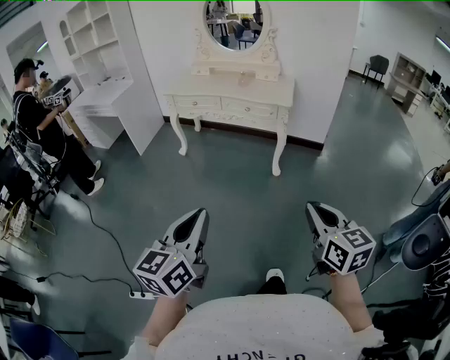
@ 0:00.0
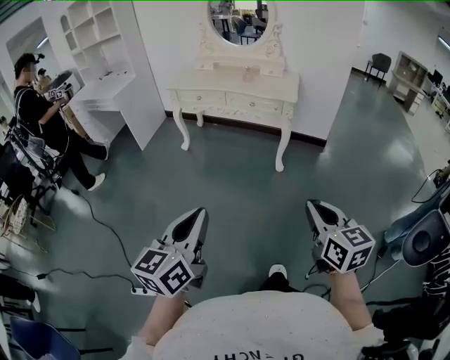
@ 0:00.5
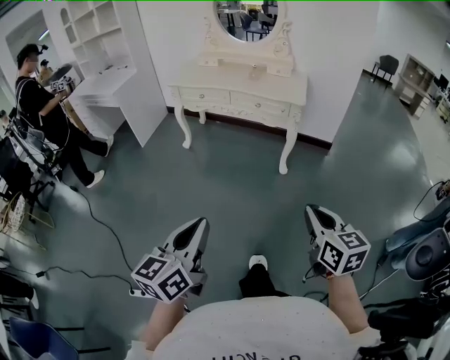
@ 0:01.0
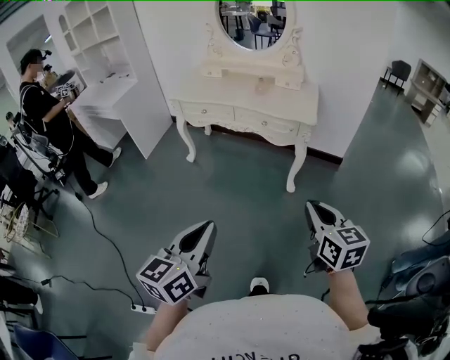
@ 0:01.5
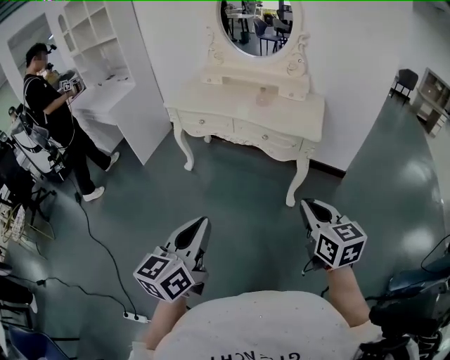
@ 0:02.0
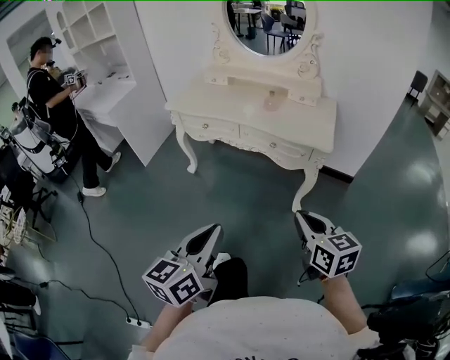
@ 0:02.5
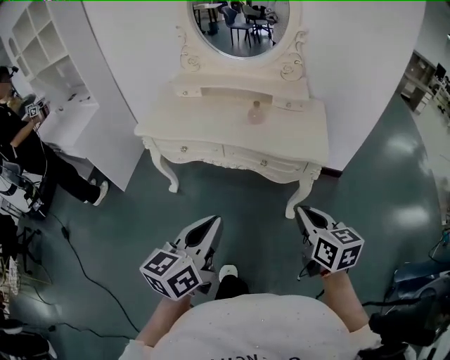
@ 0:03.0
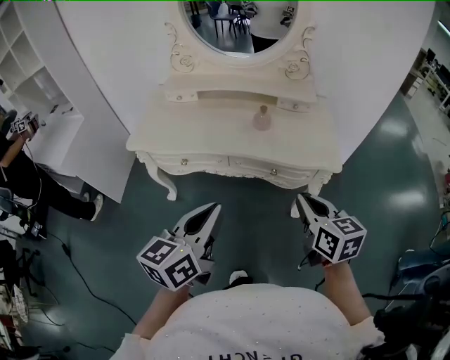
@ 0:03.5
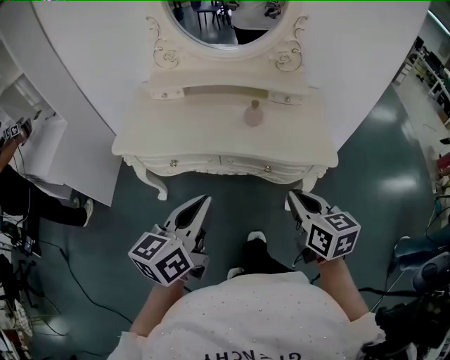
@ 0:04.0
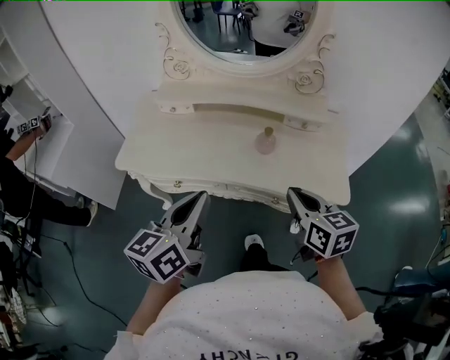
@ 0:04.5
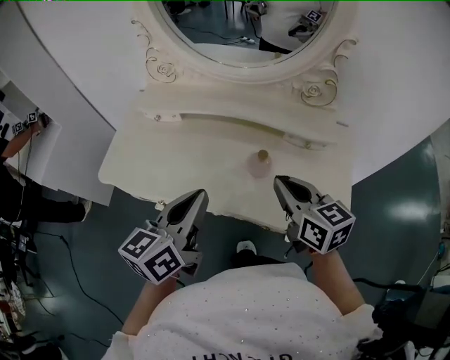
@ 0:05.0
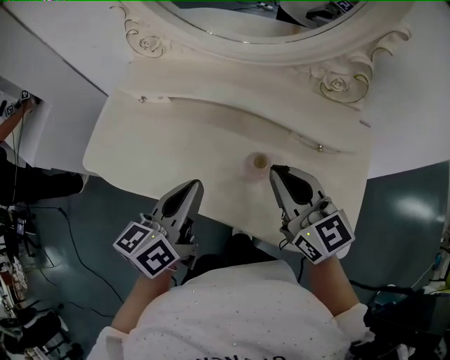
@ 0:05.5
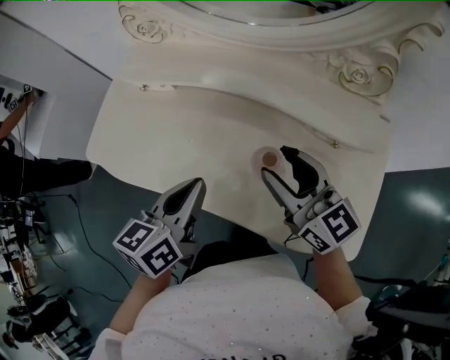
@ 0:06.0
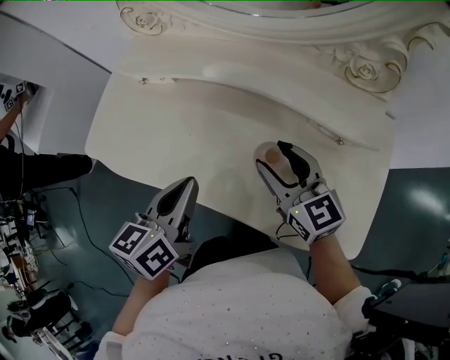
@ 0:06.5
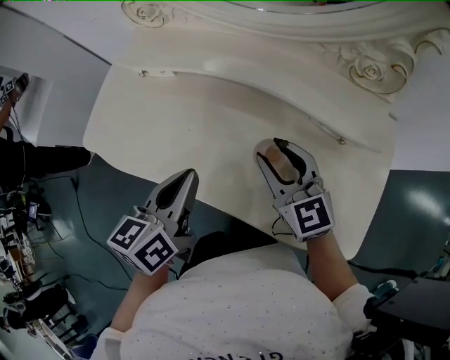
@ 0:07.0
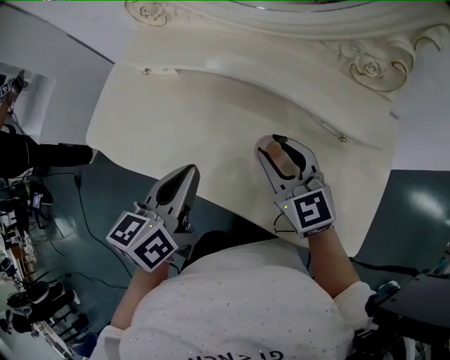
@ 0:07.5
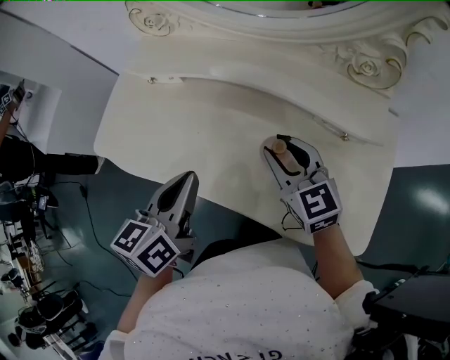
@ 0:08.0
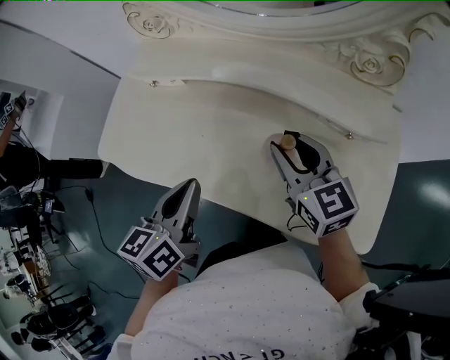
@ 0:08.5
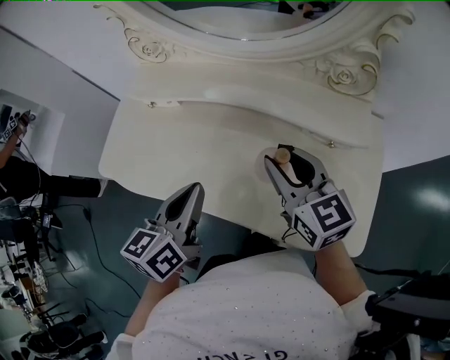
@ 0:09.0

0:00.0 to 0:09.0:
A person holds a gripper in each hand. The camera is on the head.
0:00.0 to 0:02.0: Both grippers move forward, roughly 35 cm.
0:02.0 to 0:04.5: Both grippers are carried forward, some 50 cm.
0:04.5 to 0:07.0: The left gripper heads forward and downward, covering some 25 cm, and turns by roughly 20 degrees. The right gripper shifts some 25 cm forward, turns by approximately 30 degrees, and opens up.
0:07.0 to 0:09.0: The right gripper shifts some 5 cm upward.

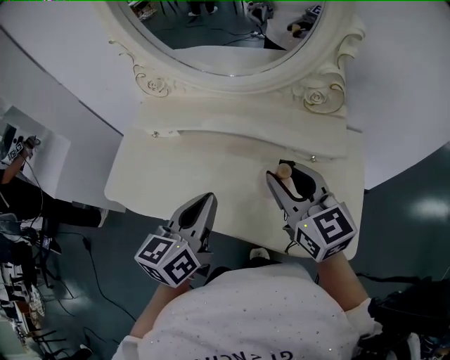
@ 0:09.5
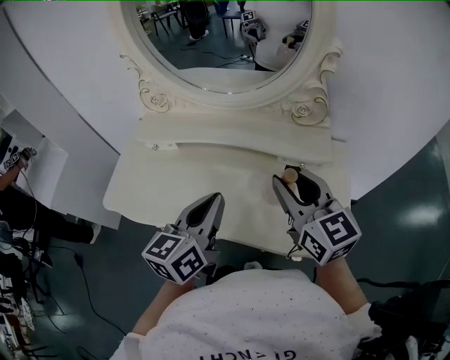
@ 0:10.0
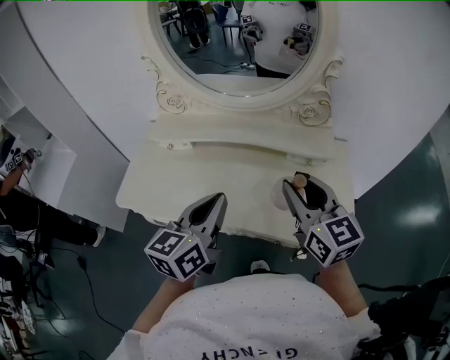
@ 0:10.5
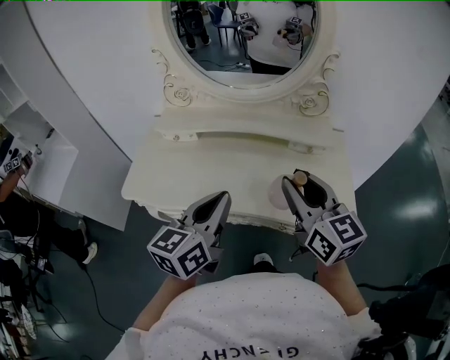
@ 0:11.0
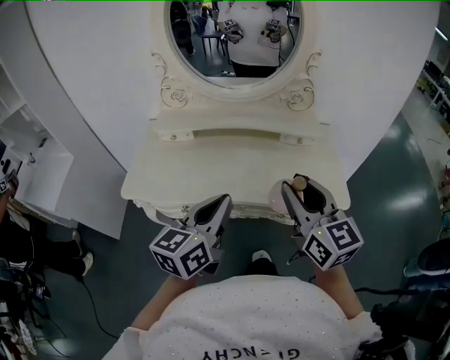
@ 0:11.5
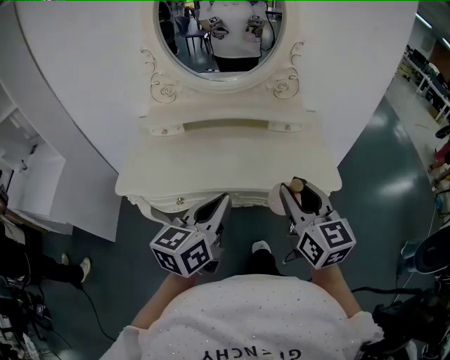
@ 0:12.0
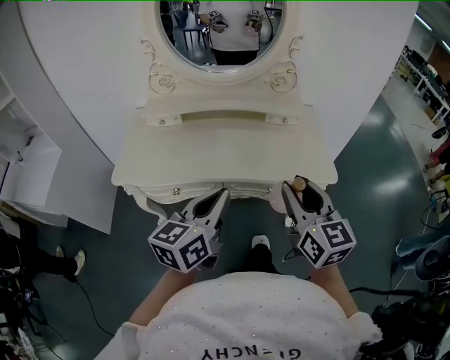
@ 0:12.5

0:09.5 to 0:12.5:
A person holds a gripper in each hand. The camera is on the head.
0:09.5 to 0:11.0: The left gripper is displaced backward, upward and to the left by roughly 15 cm; the right gripper goes approximately 15 cm backward and upward.
0:11.0 to 0:12.5: The two grippers go some 15 cm backward.

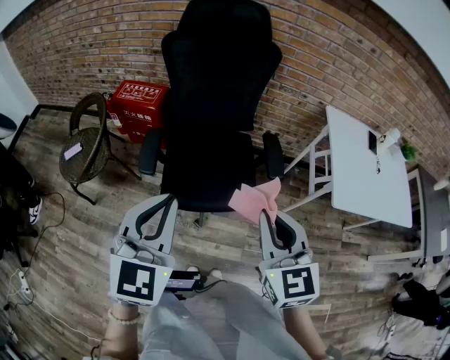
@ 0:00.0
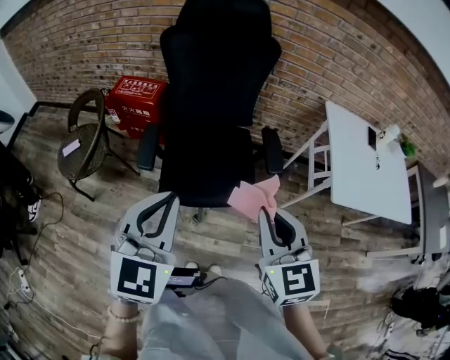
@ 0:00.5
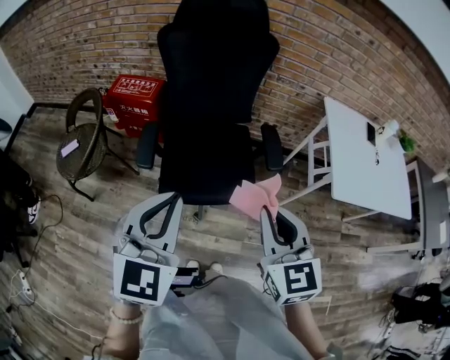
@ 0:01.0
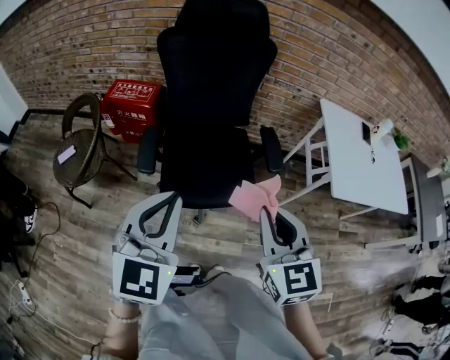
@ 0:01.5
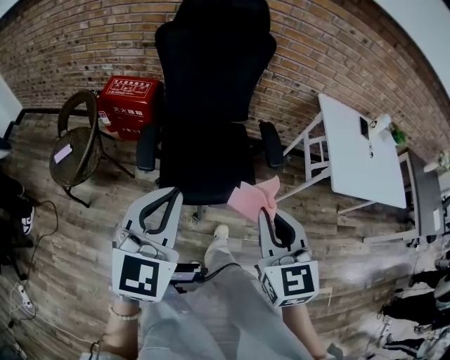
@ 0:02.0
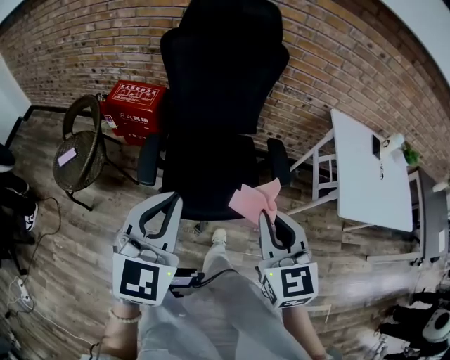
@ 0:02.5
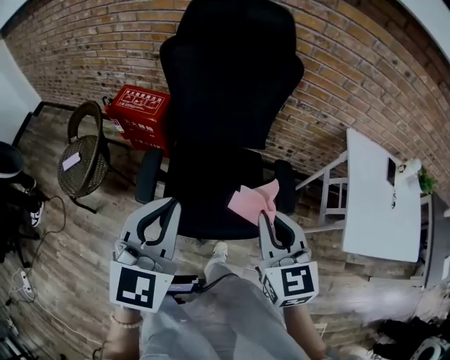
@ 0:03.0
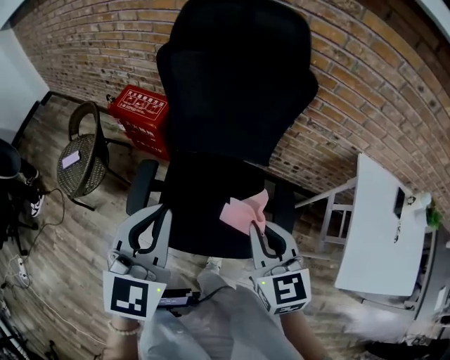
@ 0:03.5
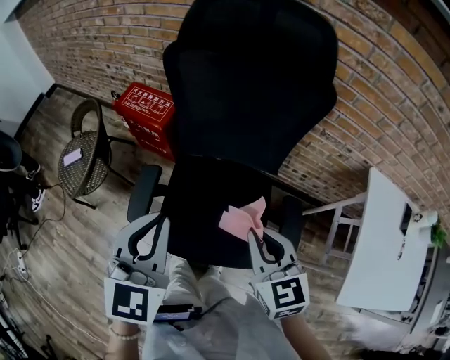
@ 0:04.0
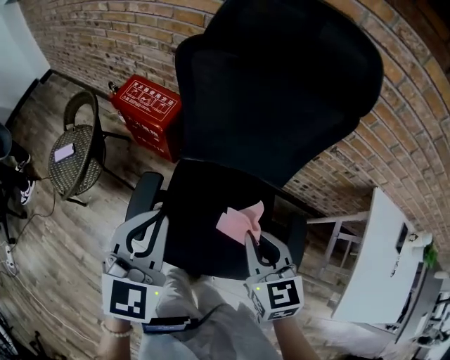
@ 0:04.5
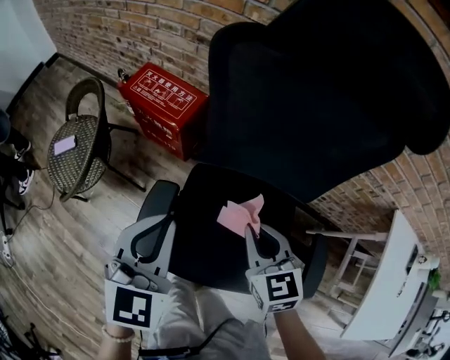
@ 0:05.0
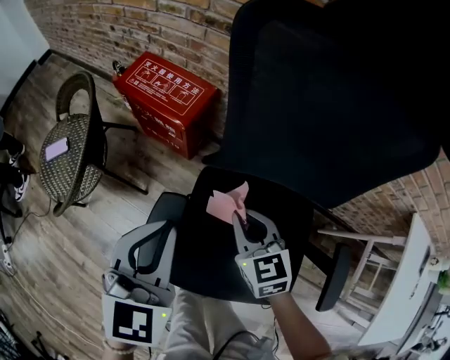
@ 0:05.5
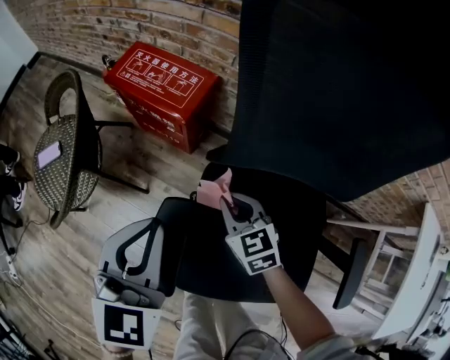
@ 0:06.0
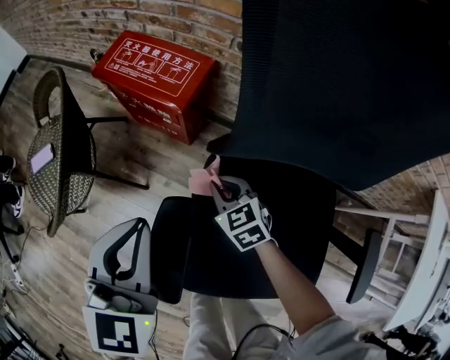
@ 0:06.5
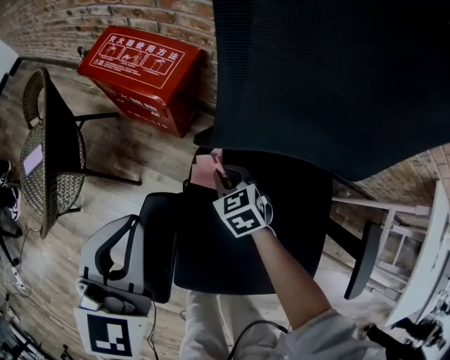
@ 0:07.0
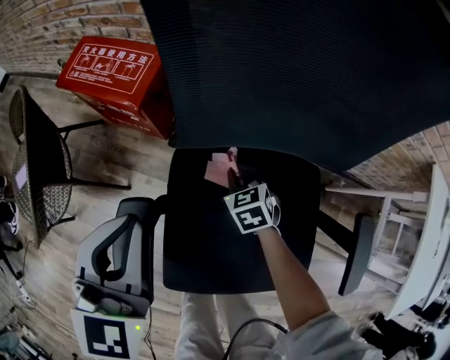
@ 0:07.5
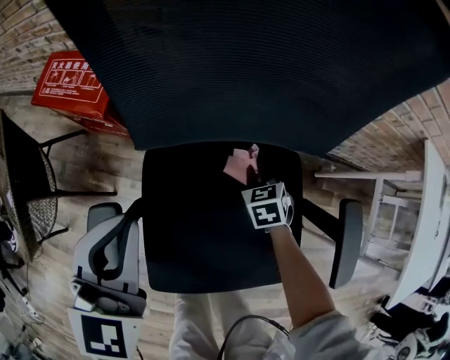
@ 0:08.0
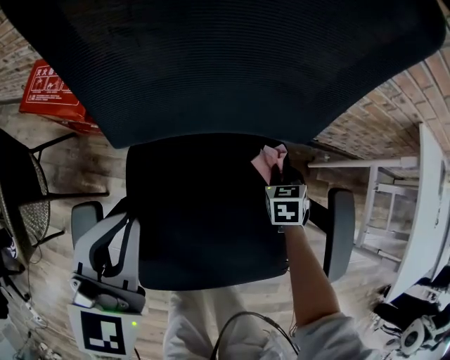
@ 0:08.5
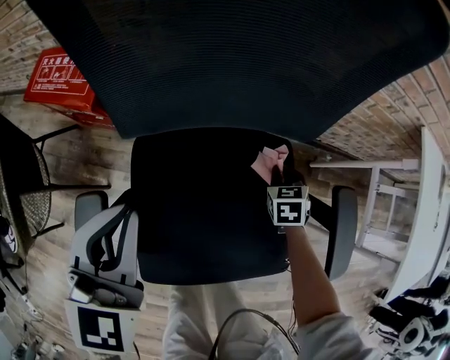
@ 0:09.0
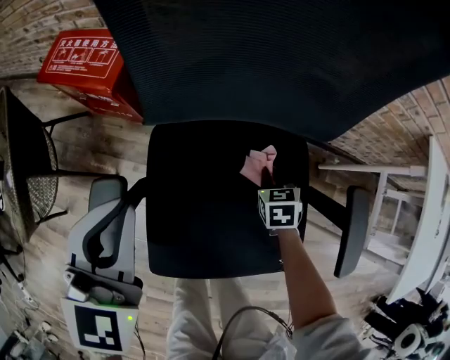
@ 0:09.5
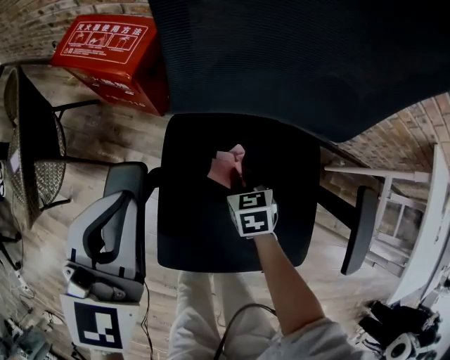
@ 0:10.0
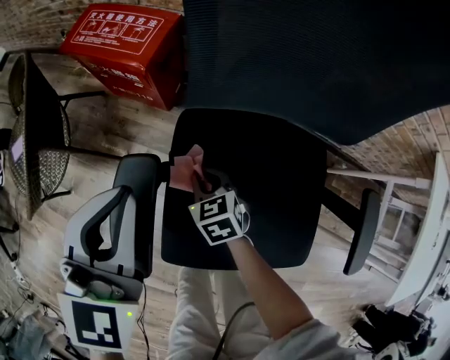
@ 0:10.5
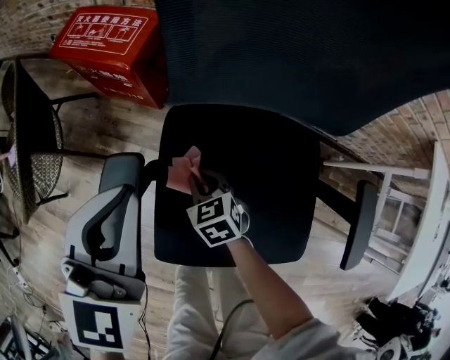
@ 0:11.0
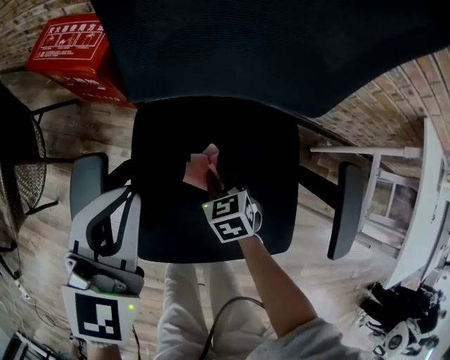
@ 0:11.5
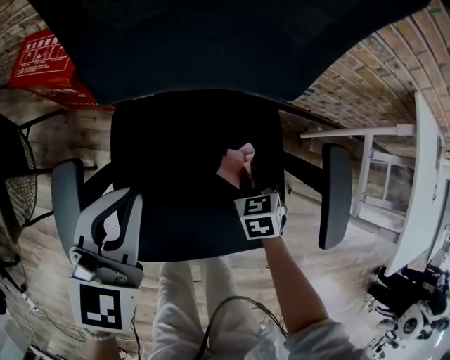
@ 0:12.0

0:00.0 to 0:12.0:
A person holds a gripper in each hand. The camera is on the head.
0:00.0 to 0:02.0: The right gripper heads to the left, covering about 5 cm.
0:02.0 to 0:04.0: Both grippers travel together forward, approximately 35 cm. The right gripper rotates some 20 degrees. The left gripper turns by roughly 30 degrees.
0:04.0 to 0:06.0: Both grippers move downward, forward and to the left, roughly 50 cm.
0:06.0 to 0:08.0: The left gripper moves approximately 15 cm; the right gripper changes place by some 30 cm, and turns by roughly 30 degrees.
0:08.0 to 0:10.0: The left gripper heads to the left, covering some 5 cm. The right gripper moves to the left and backward, approximately 15 cm.
0:10.0 to 0:12.0: The right gripper changes place by approximately 20 cm; the left gripper shifts by roughly 15 cm.

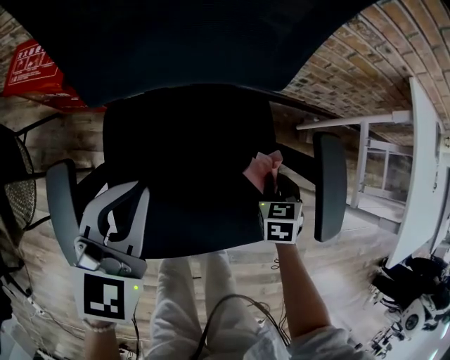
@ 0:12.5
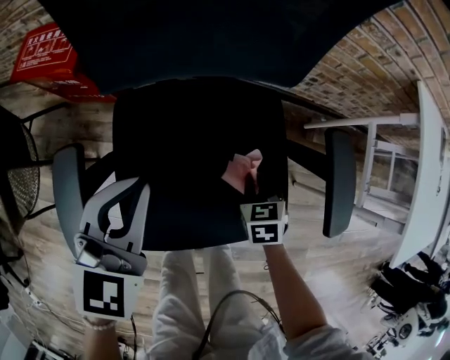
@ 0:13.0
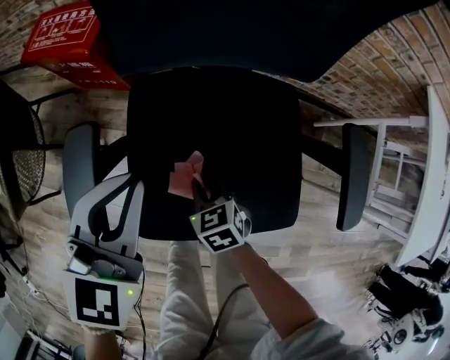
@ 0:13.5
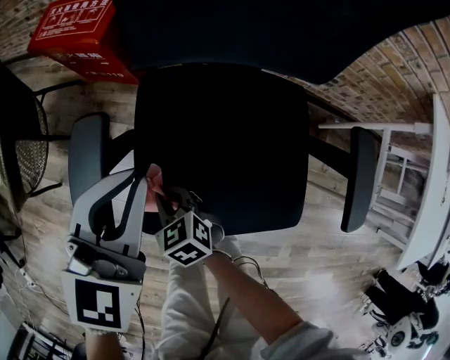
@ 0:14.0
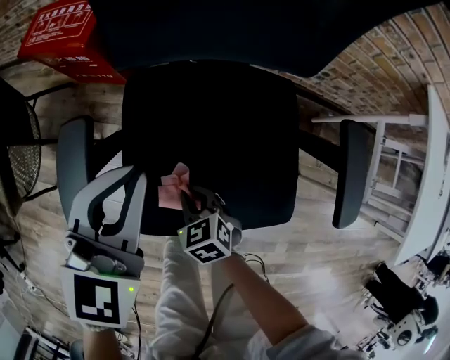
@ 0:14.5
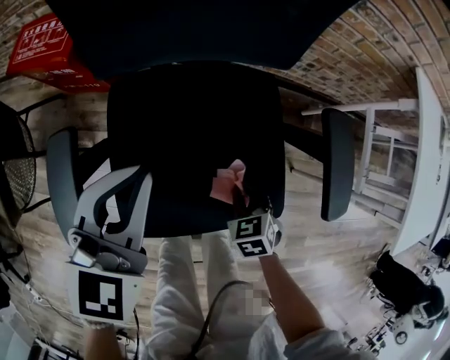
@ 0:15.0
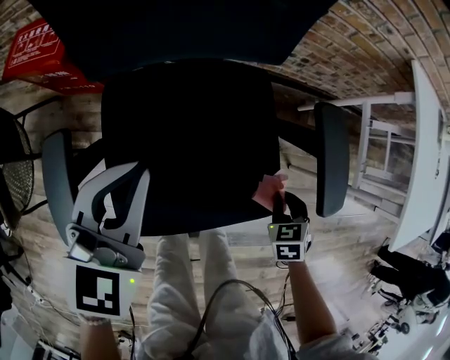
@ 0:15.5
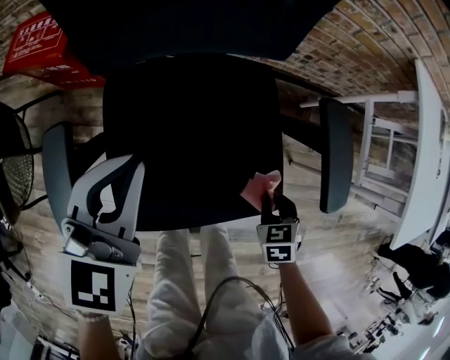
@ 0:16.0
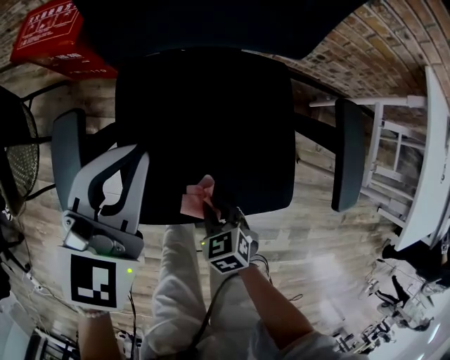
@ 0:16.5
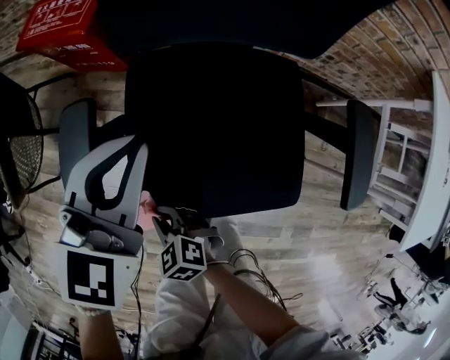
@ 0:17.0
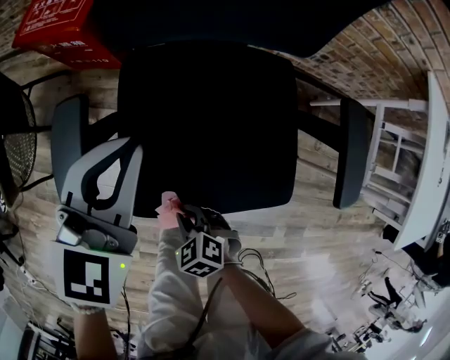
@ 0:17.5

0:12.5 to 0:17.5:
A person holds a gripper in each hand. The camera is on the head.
0:15.0 to 0:17.5: The right gripper moves about 20 cm, and rotates some 30 degrees.
